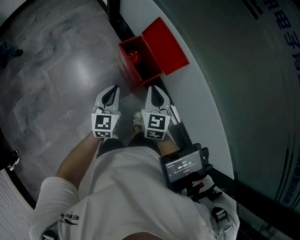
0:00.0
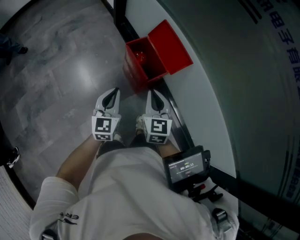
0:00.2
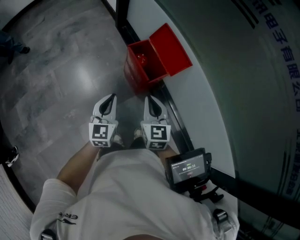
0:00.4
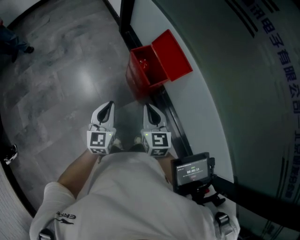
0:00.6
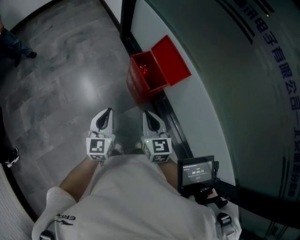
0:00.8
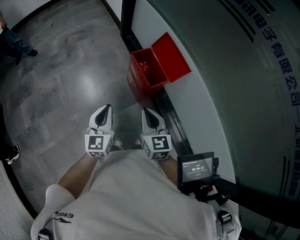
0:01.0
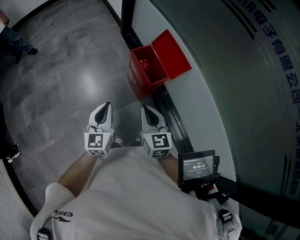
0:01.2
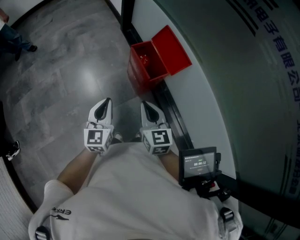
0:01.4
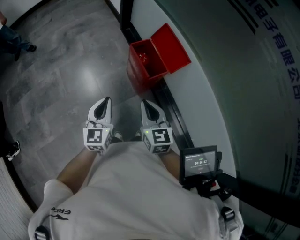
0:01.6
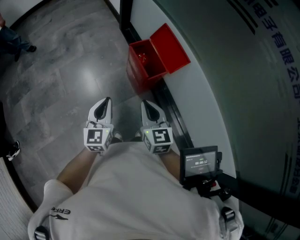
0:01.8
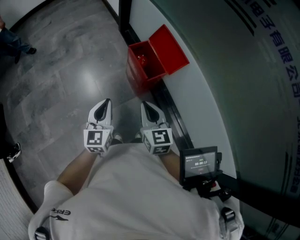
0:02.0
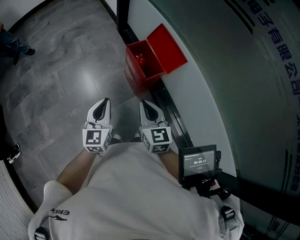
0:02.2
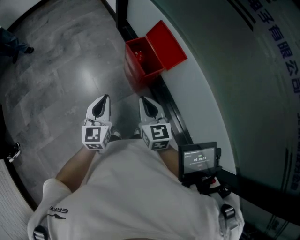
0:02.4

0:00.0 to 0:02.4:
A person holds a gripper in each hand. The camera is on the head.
0:00.0 to 0:01.2: The right gripper travels backward and to the left by approximately 15 cm; the left gripper is displaced backward, to the left and upward by about 20 cm.
0:01.2 to 0:02.4: The grippers stay close to where they were, moving slightly.

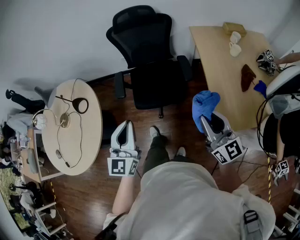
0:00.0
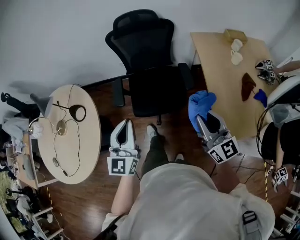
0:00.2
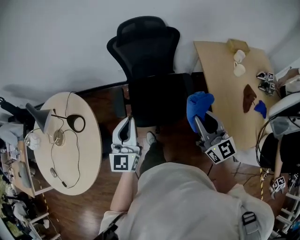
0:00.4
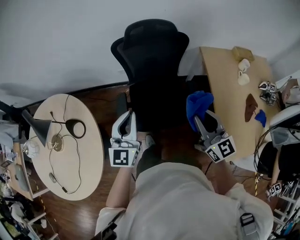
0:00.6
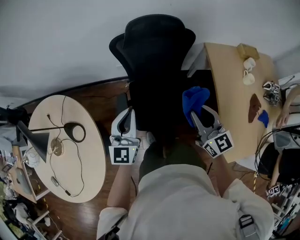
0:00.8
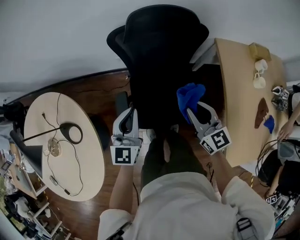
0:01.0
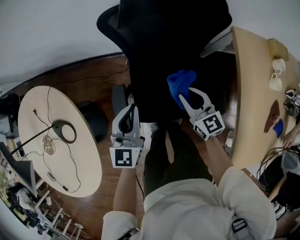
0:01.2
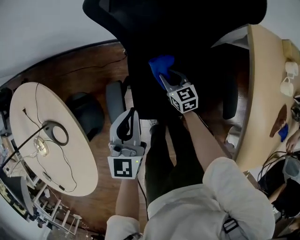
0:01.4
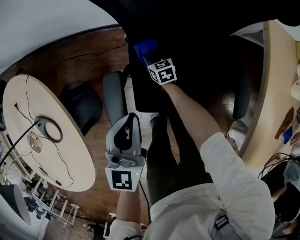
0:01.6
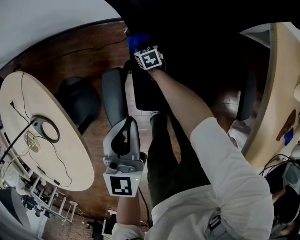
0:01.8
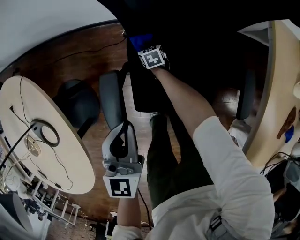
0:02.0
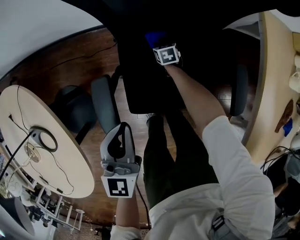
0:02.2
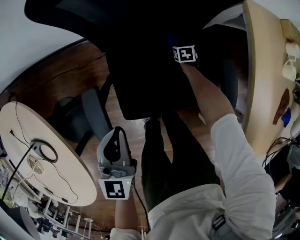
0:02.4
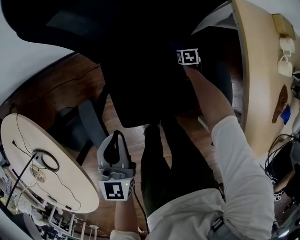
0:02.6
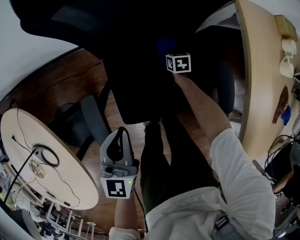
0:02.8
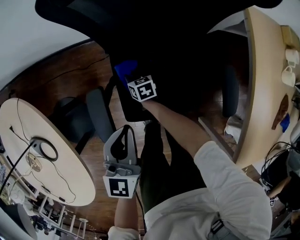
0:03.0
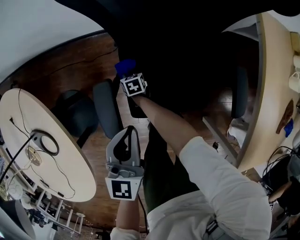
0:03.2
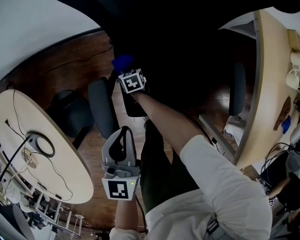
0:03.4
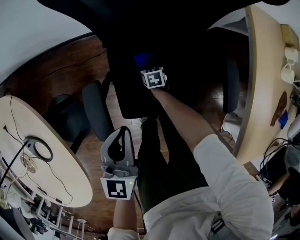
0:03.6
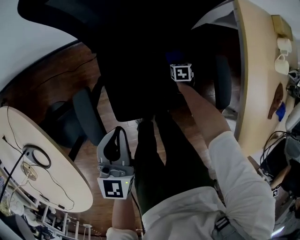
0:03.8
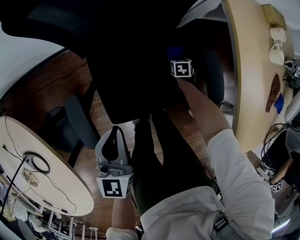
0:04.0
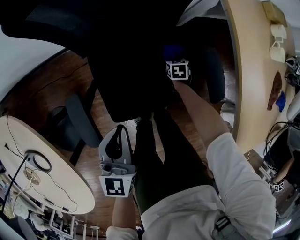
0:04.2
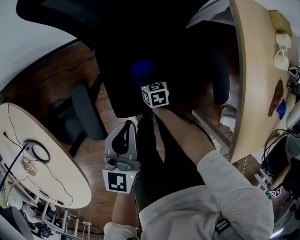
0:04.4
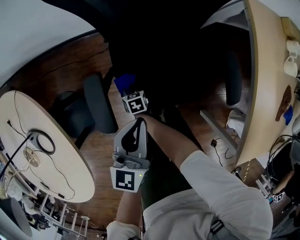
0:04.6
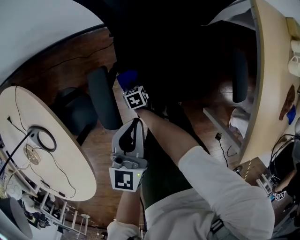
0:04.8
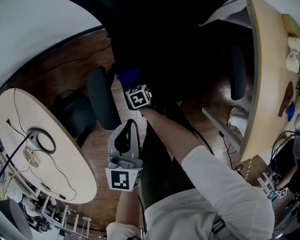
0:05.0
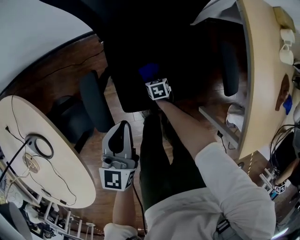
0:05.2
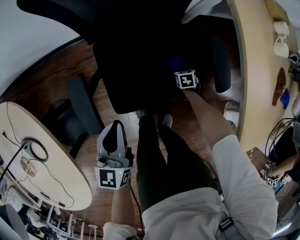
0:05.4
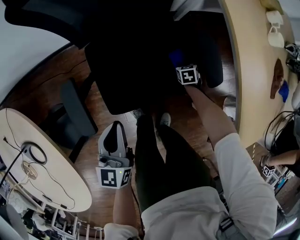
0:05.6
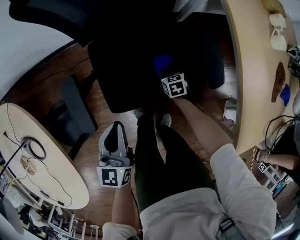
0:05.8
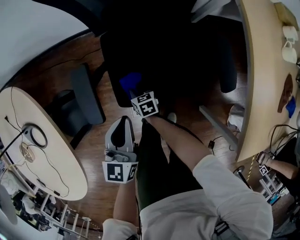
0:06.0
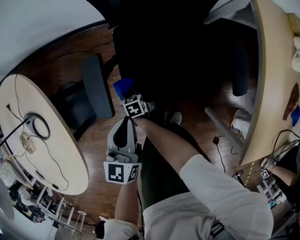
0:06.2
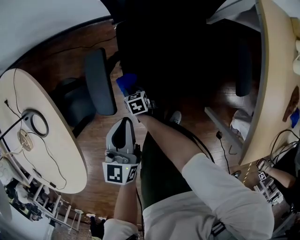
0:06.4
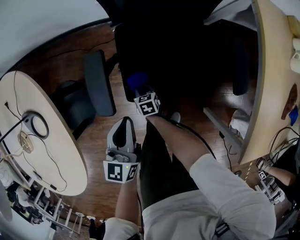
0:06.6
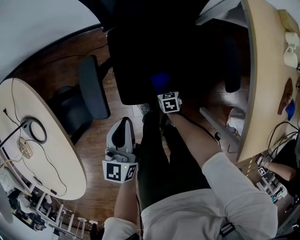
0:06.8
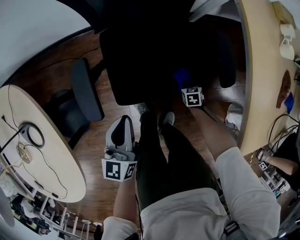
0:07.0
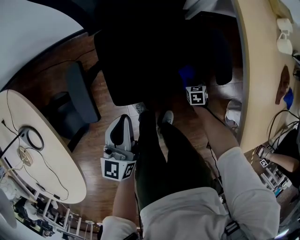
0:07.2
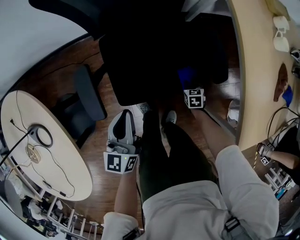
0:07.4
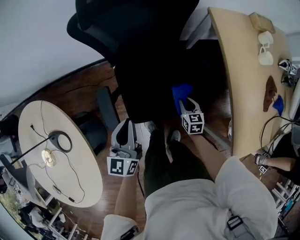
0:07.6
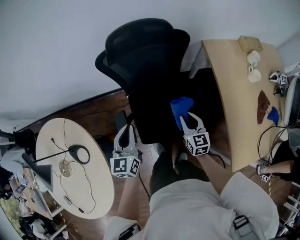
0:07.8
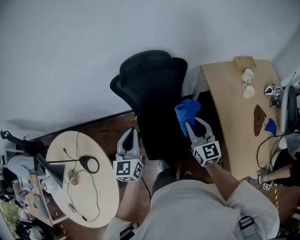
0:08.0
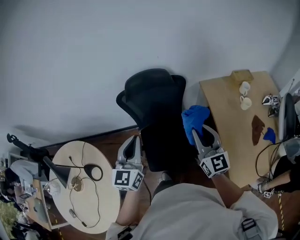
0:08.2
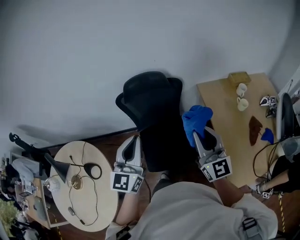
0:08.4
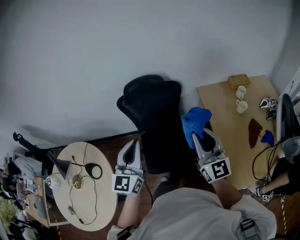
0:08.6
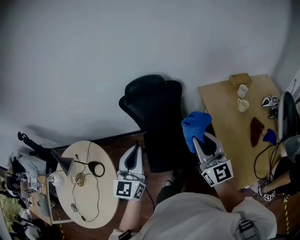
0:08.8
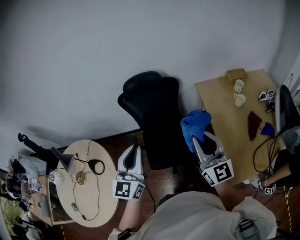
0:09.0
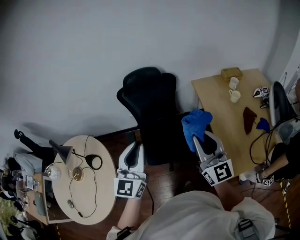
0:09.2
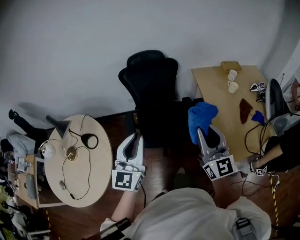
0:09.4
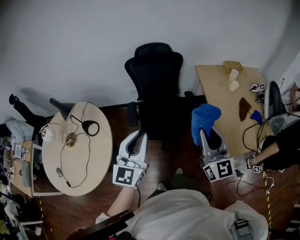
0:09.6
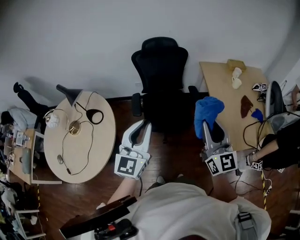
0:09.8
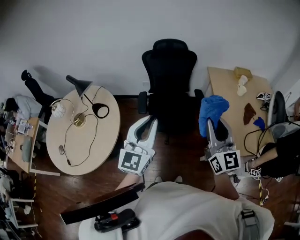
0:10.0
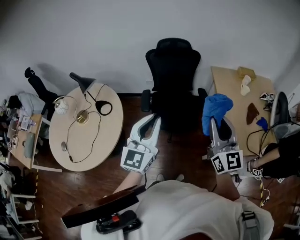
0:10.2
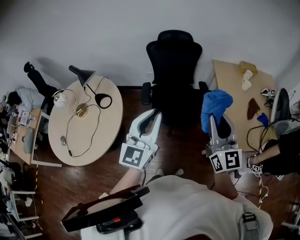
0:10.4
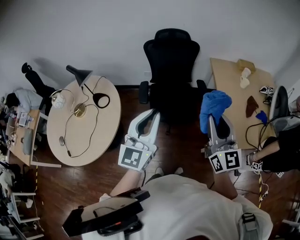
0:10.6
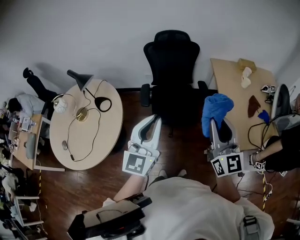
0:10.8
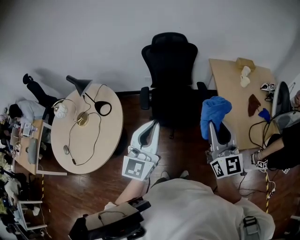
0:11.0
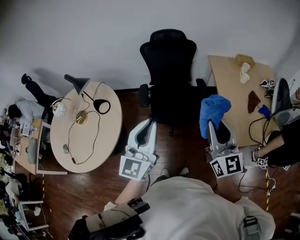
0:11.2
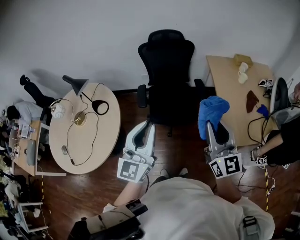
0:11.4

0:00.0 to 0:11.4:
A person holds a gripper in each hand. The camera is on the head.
0:00.0 to 0:01.4: Both grippers are carried forward, approximately 70 cm. The right gripper goes about 50 cm downward, and points its fingers some 50 degrees further downward.
0:01.4 to 0:02.8: The right gripper goes left and right, some 40 cm each way, reversing 2 times, and swivels roughly 40 degrees. Meanwhile the left gripper changes place by approximately 5 cm.
0:02.8 to 0:04.2: The right gripper travels downward and back again, about 5 cm each way.
0:04.2 to 0:05.6: The left gripper moves approximately 10 cm; the right gripper goes upward and returns, roughly 5 cm each way.
0:05.6 to 0:07.2: The right gripper goes upward and returns, about 5 cm each way.
0:07.2 to 0:08.6: The right gripper moves upward, some 90 cm, and tips its fingers upward by some 100 degrees; the left gripper travels upward and backward by approximately 60 cm, and swivels about 40 degrees.
0:08.6 to 0:10.0: Both grippers travel together backward, about 40 cm.
0:10.0 to 0:11.4: The grippers move only a little.

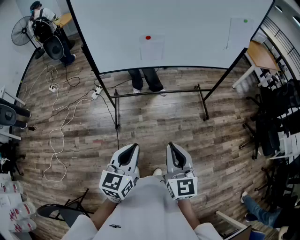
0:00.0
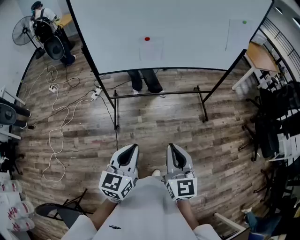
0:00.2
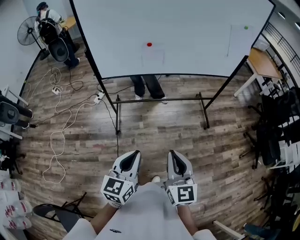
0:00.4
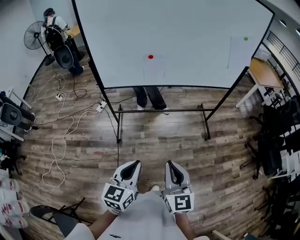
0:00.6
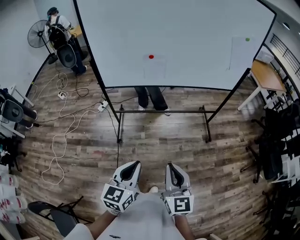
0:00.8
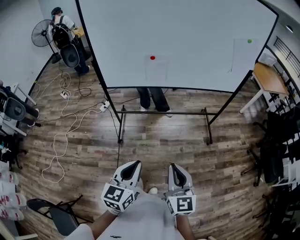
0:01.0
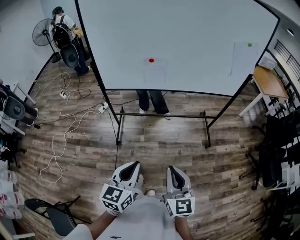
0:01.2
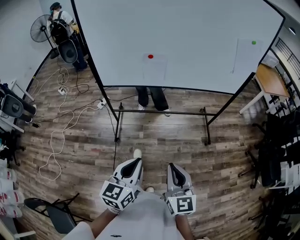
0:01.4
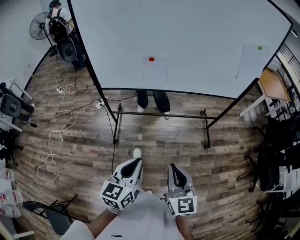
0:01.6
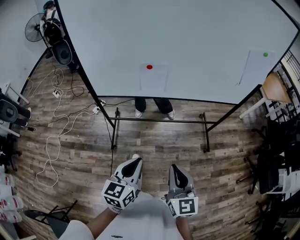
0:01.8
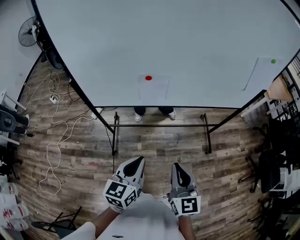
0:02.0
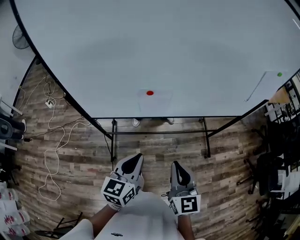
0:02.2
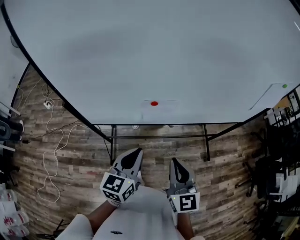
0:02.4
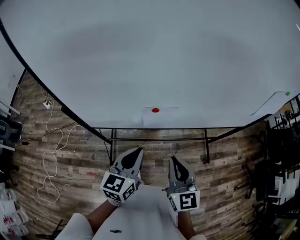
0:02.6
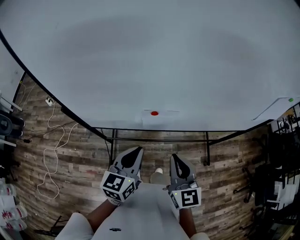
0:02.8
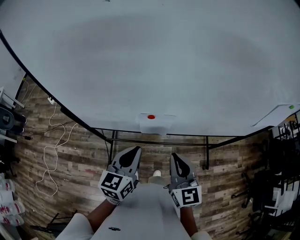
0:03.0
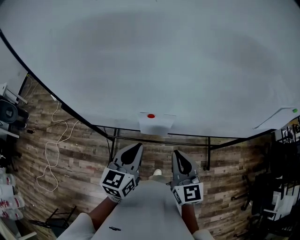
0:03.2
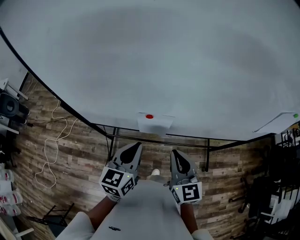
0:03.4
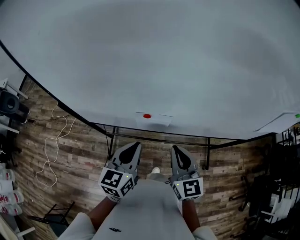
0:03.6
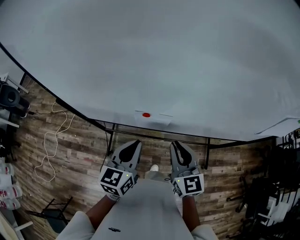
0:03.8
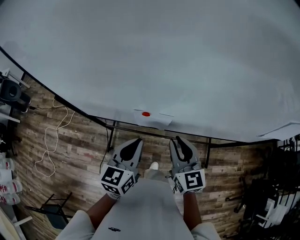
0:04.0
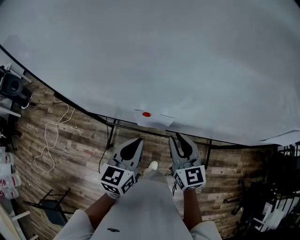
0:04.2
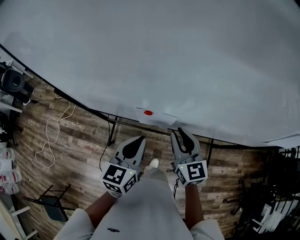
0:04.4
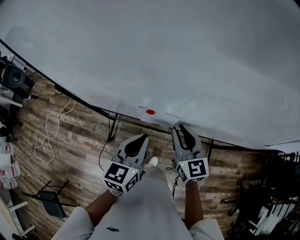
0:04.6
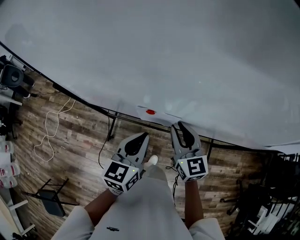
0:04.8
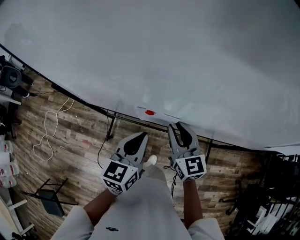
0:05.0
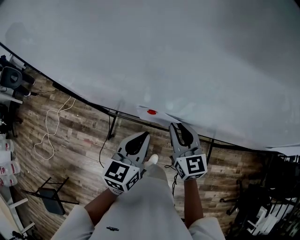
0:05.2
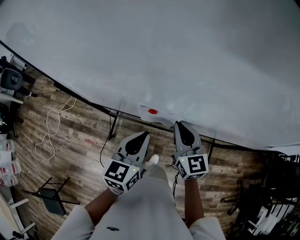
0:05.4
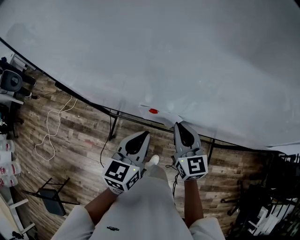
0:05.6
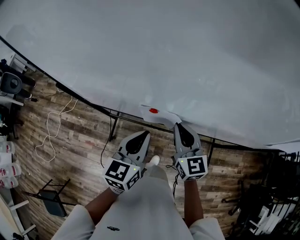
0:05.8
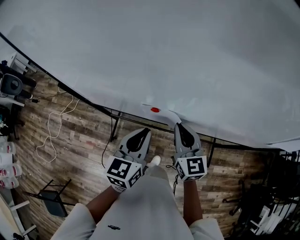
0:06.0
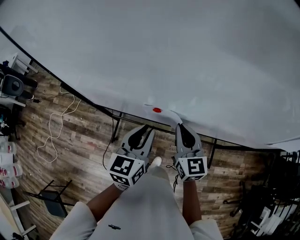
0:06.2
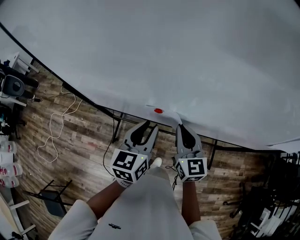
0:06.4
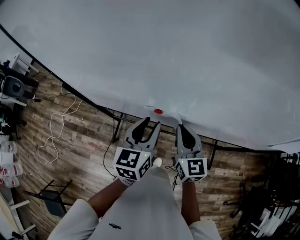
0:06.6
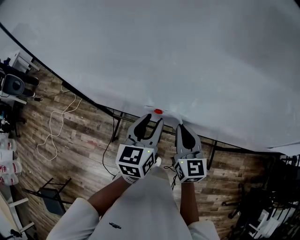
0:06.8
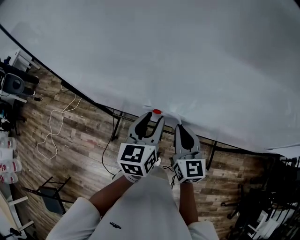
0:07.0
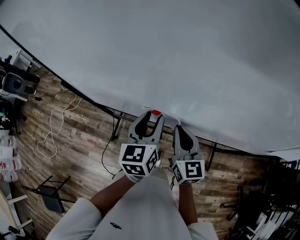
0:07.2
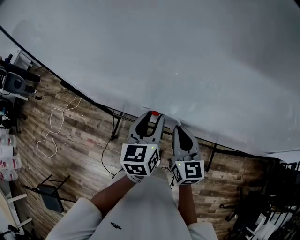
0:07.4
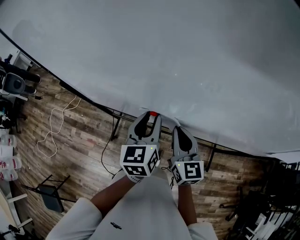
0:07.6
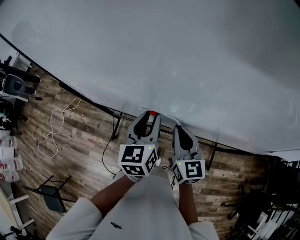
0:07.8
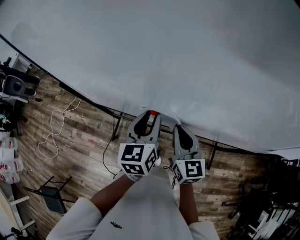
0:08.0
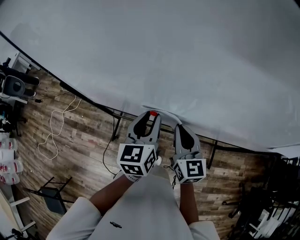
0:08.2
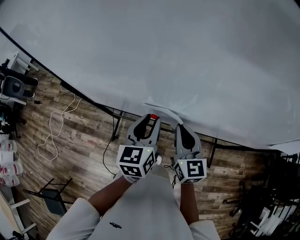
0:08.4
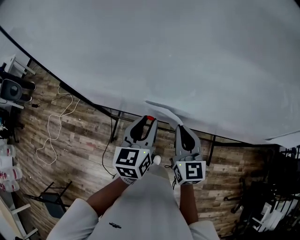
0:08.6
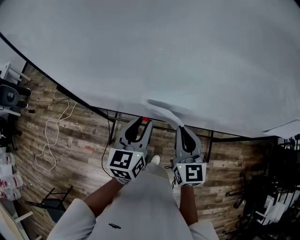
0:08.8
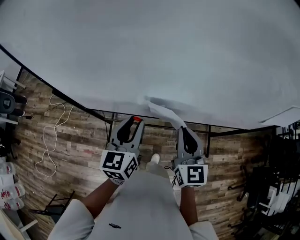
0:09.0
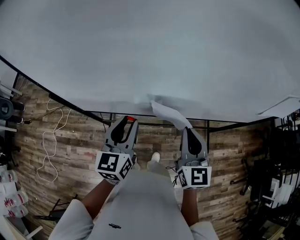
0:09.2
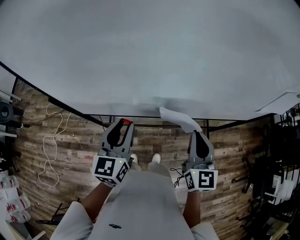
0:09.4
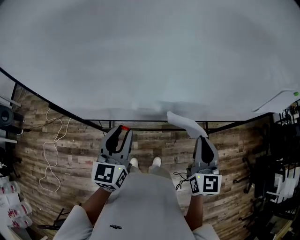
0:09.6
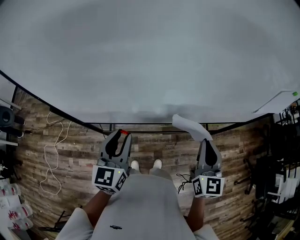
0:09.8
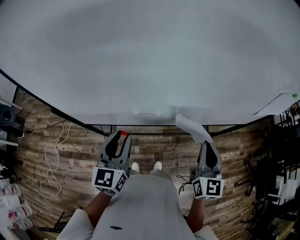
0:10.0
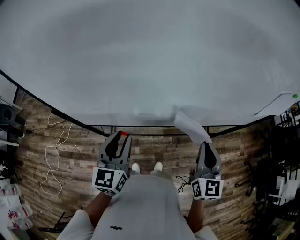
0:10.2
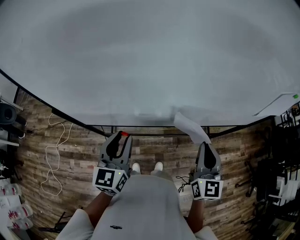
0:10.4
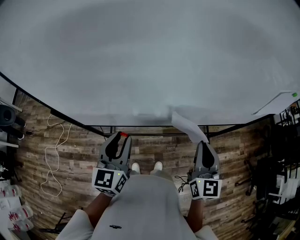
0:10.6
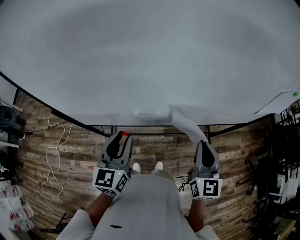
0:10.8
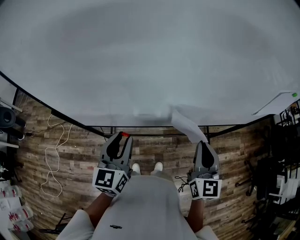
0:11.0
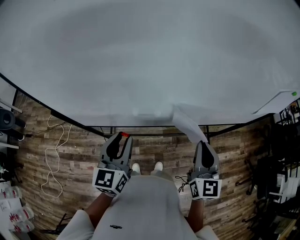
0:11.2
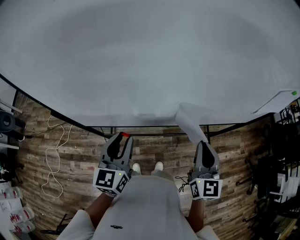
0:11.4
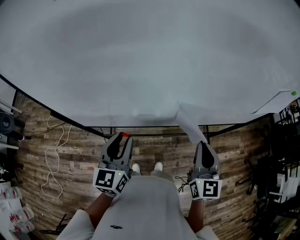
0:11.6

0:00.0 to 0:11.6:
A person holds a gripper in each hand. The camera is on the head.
0:00.0 to 0:01.4: The two grippers go some 10 cm to the right.
0:01.4 to 0:02.8: Both grippers are carried forward, approximately 40 cm.
0:02.8 to 0:04.4: The left gripper shifts about 5 cm forward; the right gripper shifts some 15 cm forward.
0:04.4 to 0:05.8: The grippers make only small movements.
0:05.8 to 0:07.2: The left gripper heads forward, covering some 5 cm, and opens up.
0:07.2 to 0:08.8: The left gripper changes place by approximately 5 cm. Meanwhile the right gripper goes about 5 cm backward.
0:08.8 to 0:10.2: The right gripper heads to the right and backward, covering roughly 15 cm, and turns by some 20 degrees, while the left gripper shifts by roughly 5 cm.
0:10.2 to 0:11.6: The grippers stay close to where they were, moving slightly.
